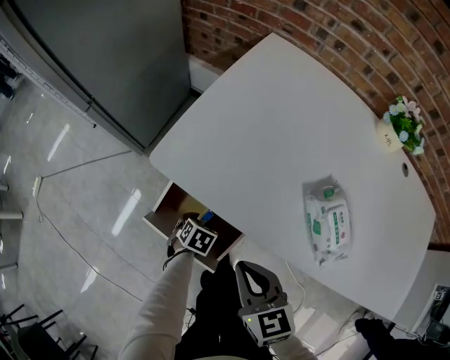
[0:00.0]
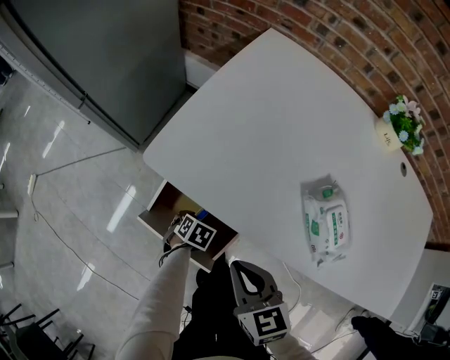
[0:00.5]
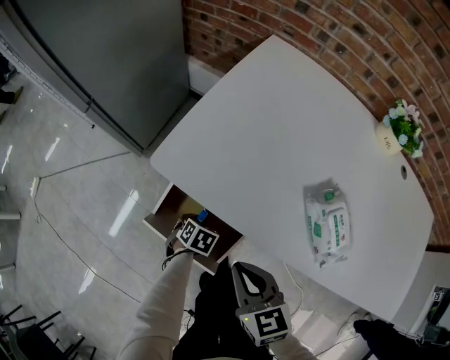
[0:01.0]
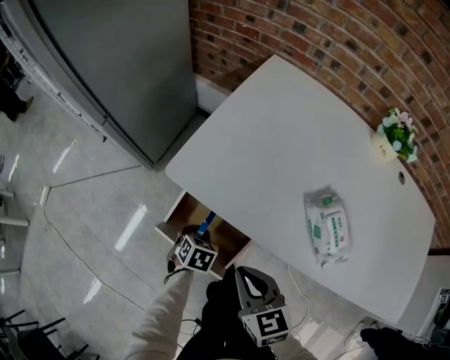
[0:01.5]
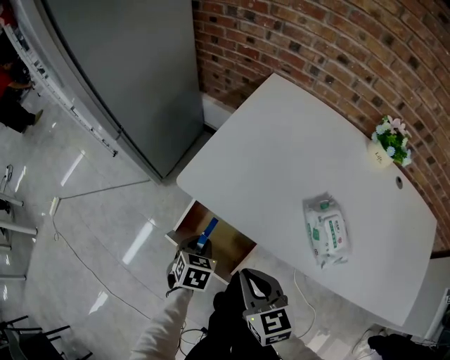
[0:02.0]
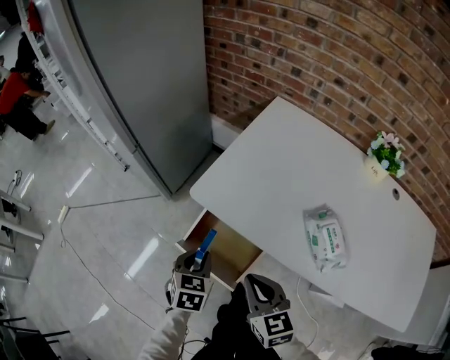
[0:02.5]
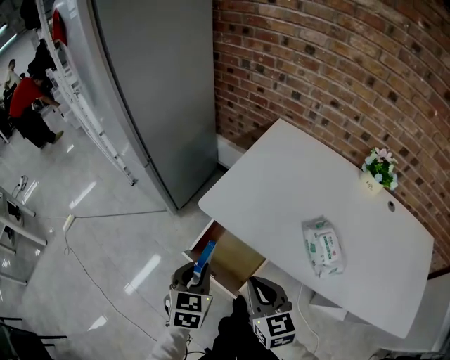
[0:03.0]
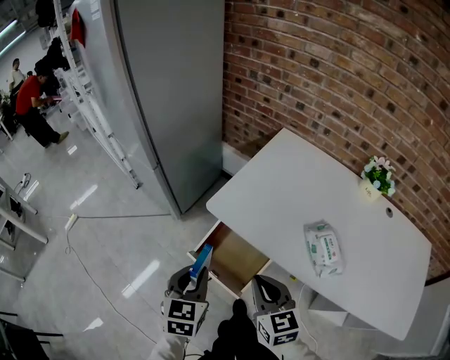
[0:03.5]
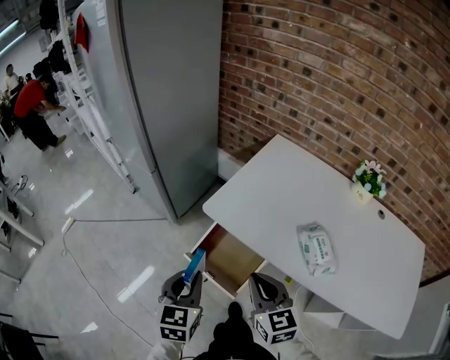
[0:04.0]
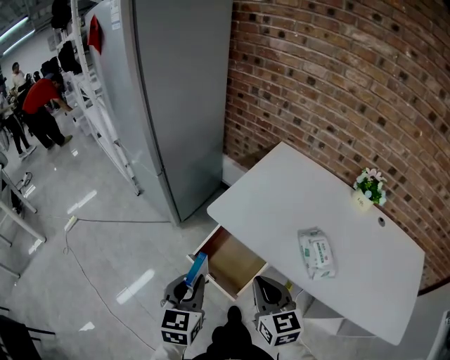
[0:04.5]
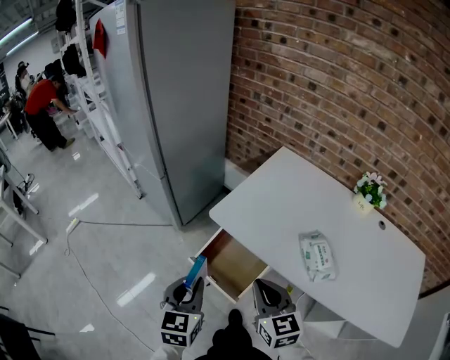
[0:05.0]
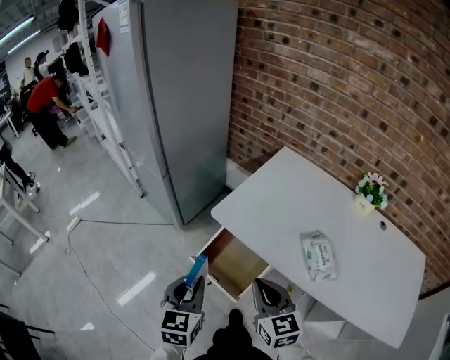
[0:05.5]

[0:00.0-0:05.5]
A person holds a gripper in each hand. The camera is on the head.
0:00.0 to 0:02.0: The left gripper travels upward by about 15 cm, and closes up.
0:02.0 to 0:03.5: The right gripper goes about 10 cm upward. The left gripper goes roughly 20 cm upward, and rotates about 30 degrees.
0:03.5 to 0:05.5: The left gripper moves some 5 cm.

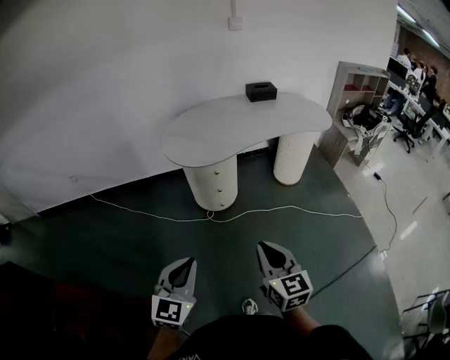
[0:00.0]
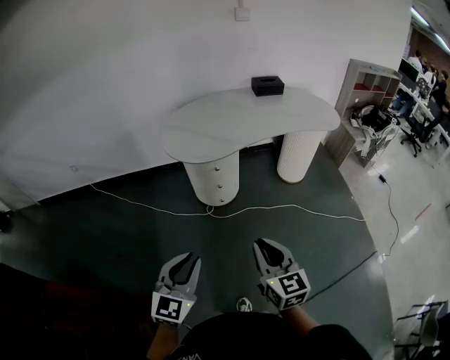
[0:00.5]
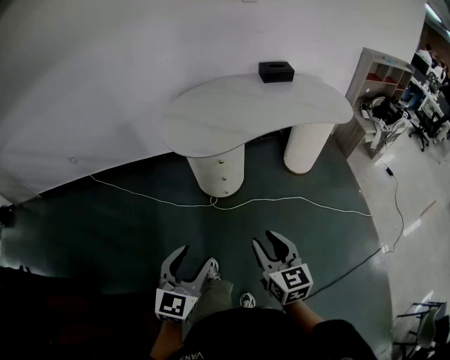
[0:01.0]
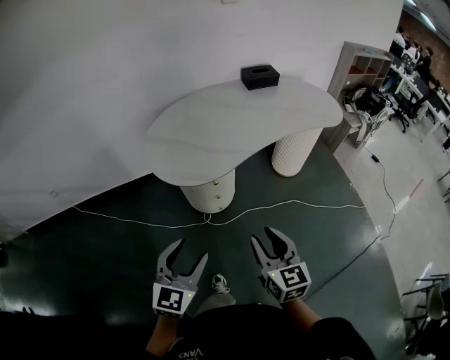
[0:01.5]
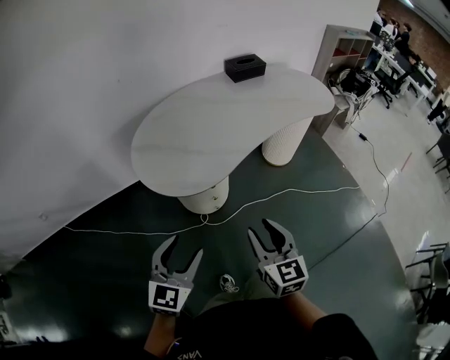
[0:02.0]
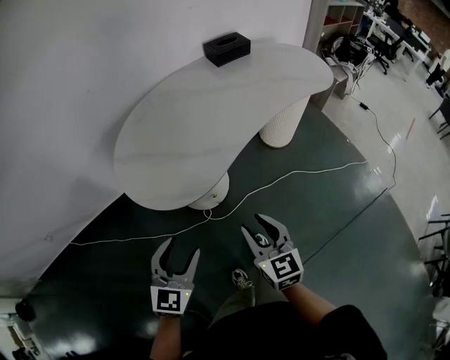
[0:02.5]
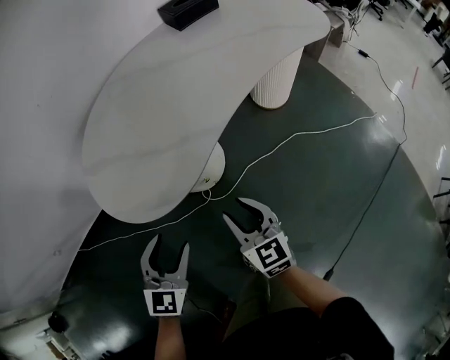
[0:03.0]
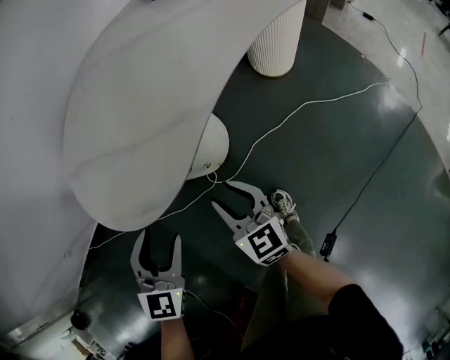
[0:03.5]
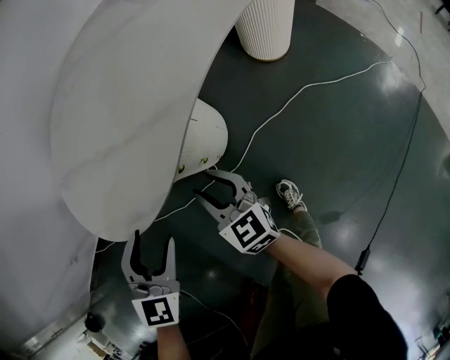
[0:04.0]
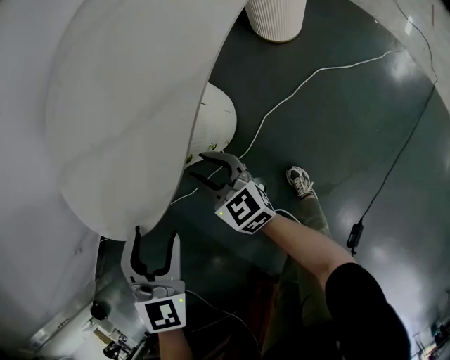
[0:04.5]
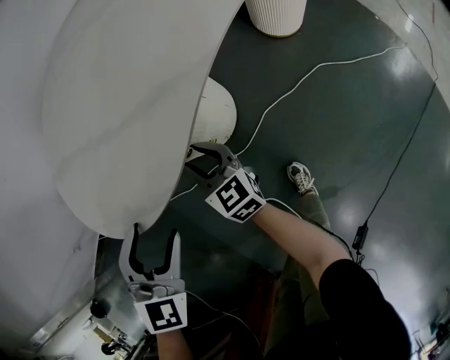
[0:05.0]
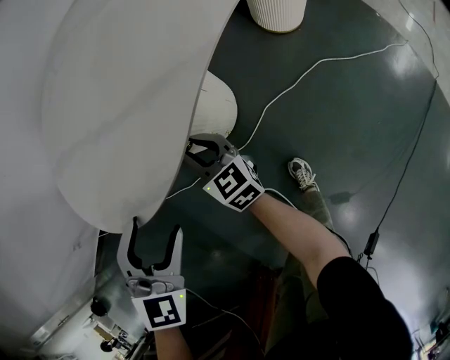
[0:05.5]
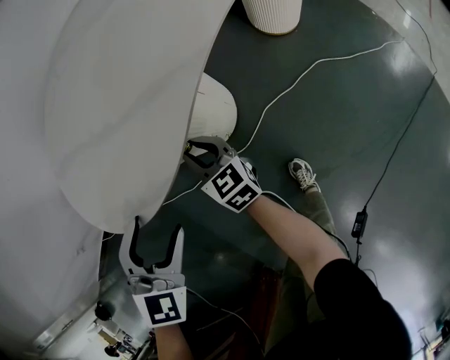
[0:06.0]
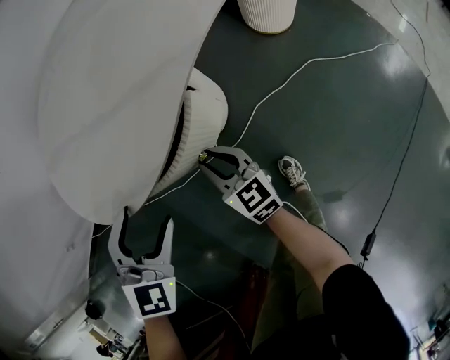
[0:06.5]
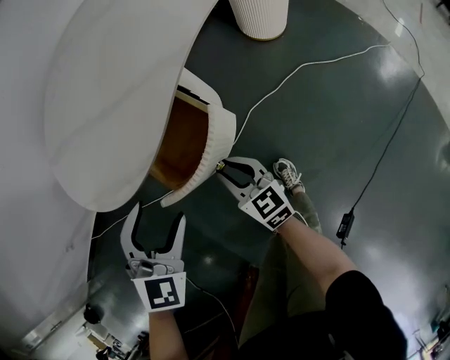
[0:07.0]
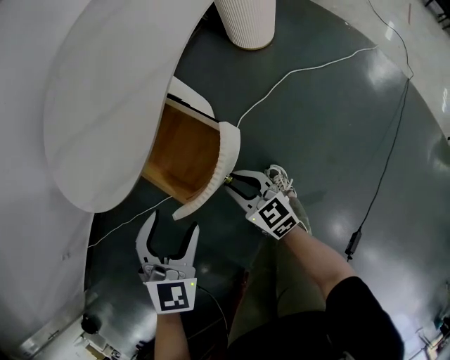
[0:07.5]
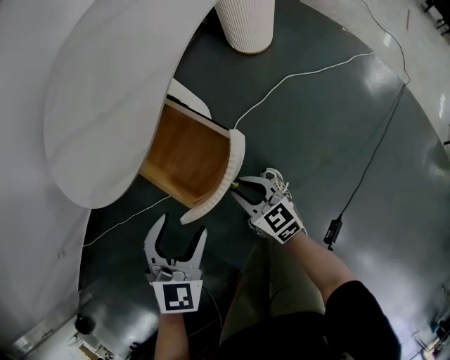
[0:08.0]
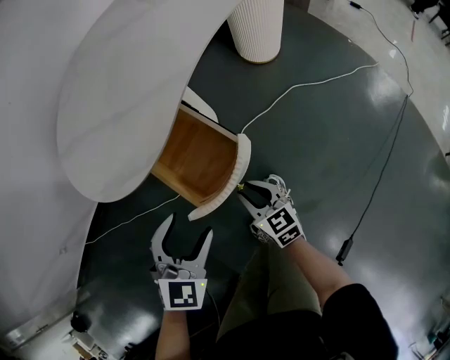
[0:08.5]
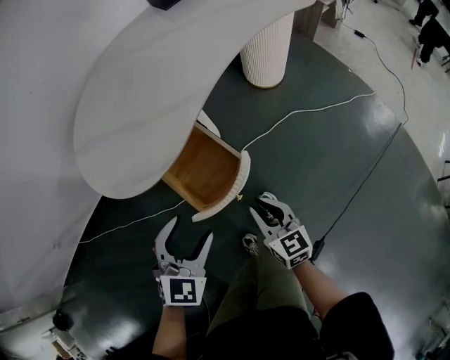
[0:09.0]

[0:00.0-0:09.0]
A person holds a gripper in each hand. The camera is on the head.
0:00.0 to 0:02.0: The two grippers go roughly 30 cm forward. The right gripper opens. Meanwhile the left gripper opens its fingers.
0:02.0 to 0:04.5: Both grippers move downward and forward, some 35 cm. The left gripper swivels approximately 30 degrees.
0:04.5 to 0:07.0: The left gripper shifts by about 5 cm; the right gripper moves backward and downward, roughly 10 cm.
0:07.0 to 0:09.0: The right gripper travels upward, backward and to the right by roughly 20 cm. The left gripper shifts some 10 cm backward, upward and to the right.

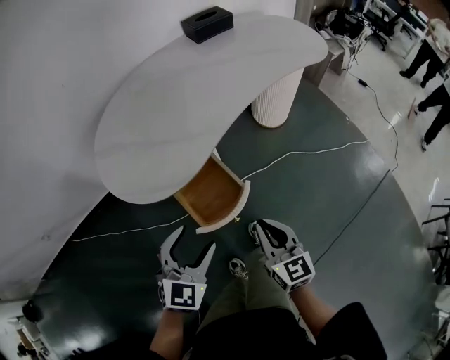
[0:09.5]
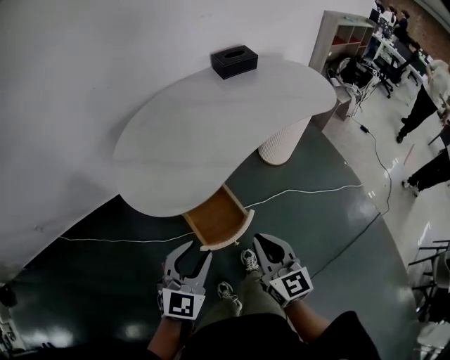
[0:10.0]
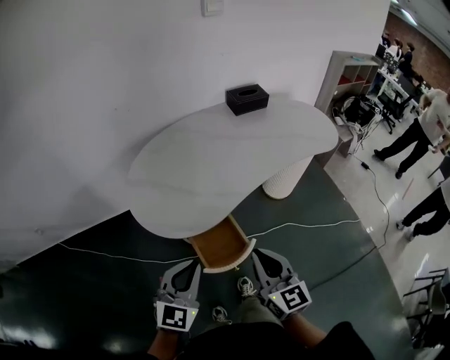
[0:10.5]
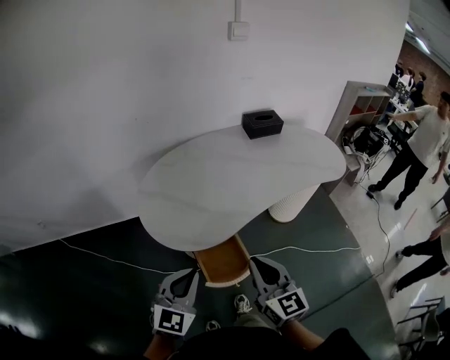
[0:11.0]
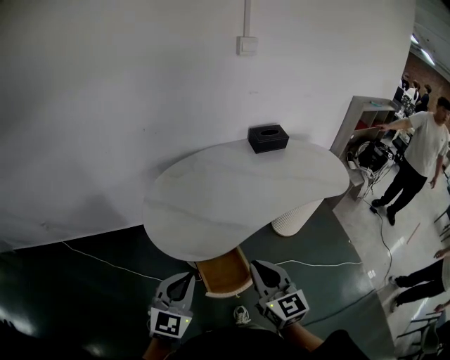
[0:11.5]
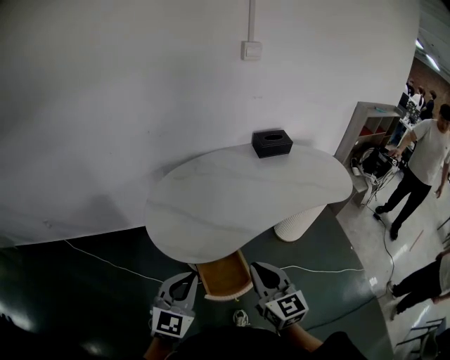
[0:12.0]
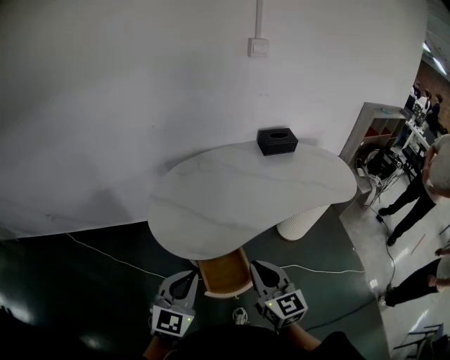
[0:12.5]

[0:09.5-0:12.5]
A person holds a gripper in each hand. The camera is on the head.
0:09.5 to 0:11.0: The left gripper shifts approximately 15 cm upward and to the left, and closes its fingers, while the right gripper shifts roughly 20 cm upward.
0:11.0 to 0:12.5: The grippers stay close to where they were, moving slightly.

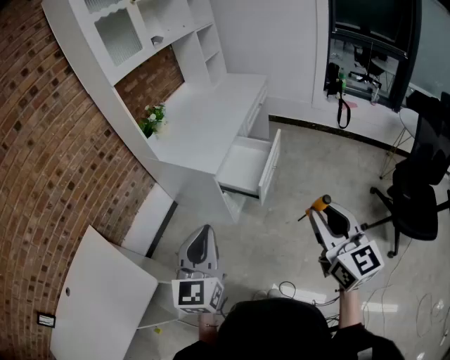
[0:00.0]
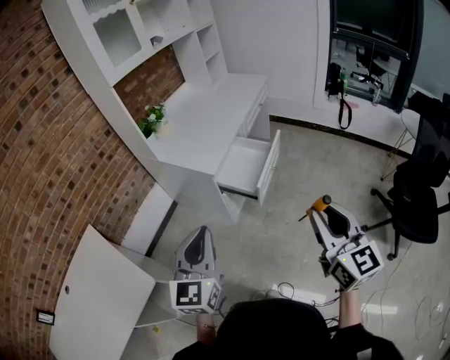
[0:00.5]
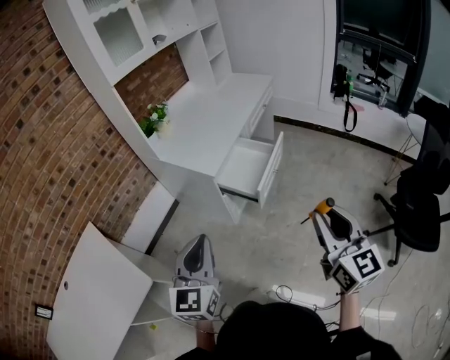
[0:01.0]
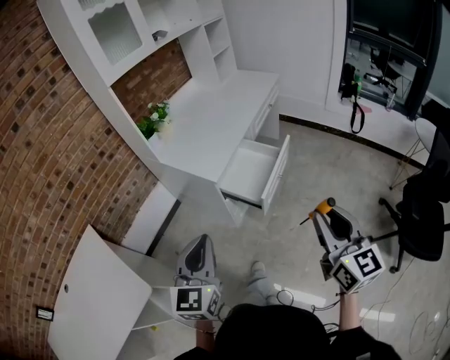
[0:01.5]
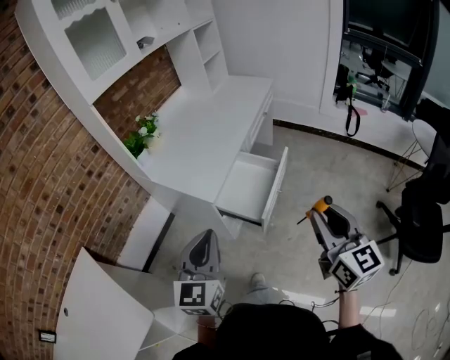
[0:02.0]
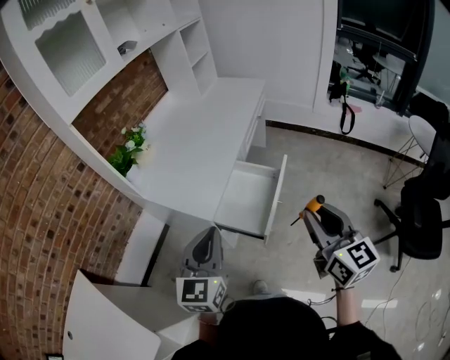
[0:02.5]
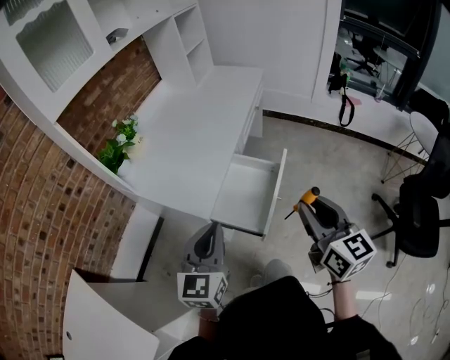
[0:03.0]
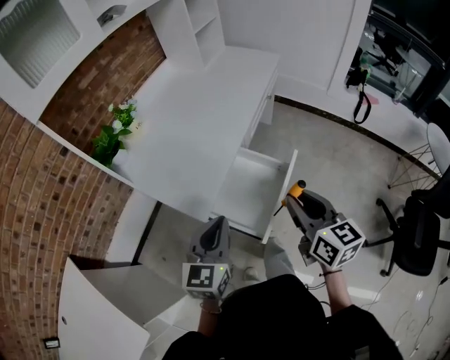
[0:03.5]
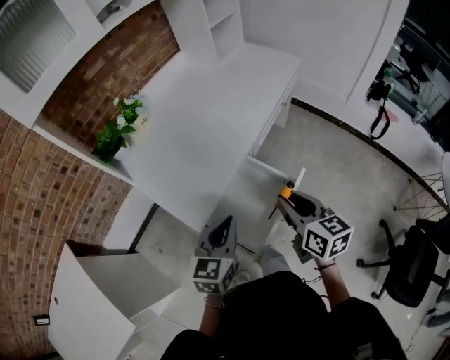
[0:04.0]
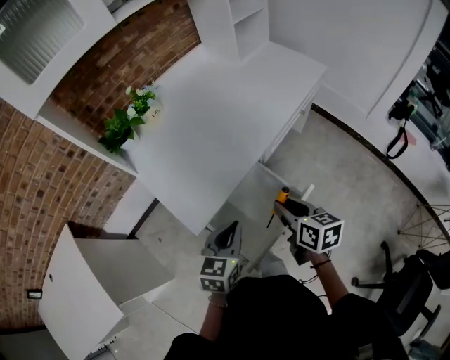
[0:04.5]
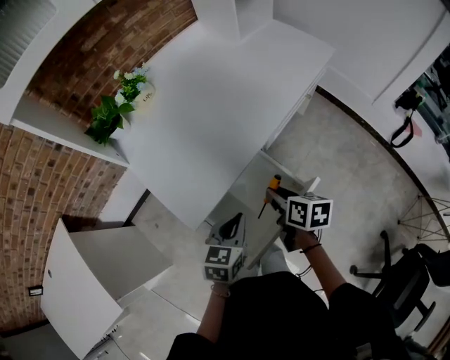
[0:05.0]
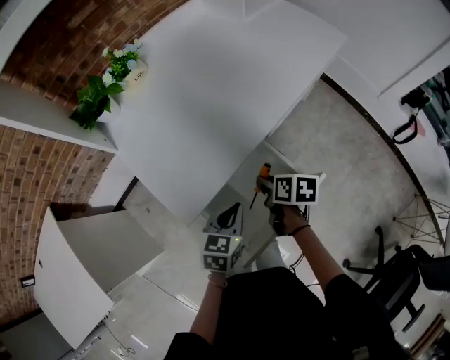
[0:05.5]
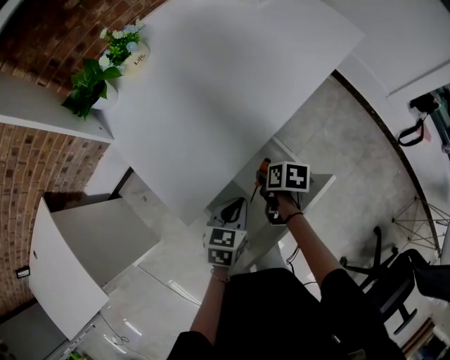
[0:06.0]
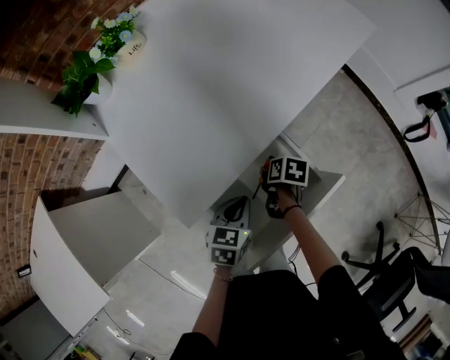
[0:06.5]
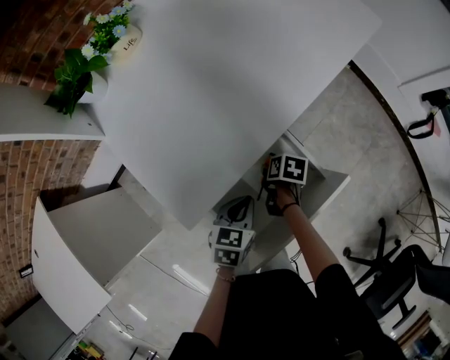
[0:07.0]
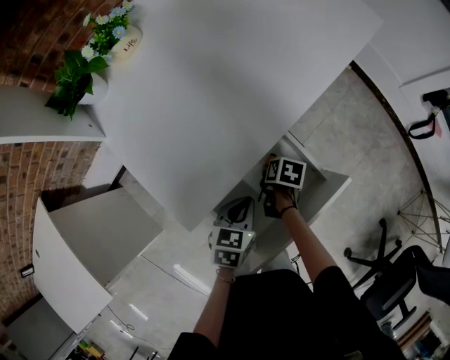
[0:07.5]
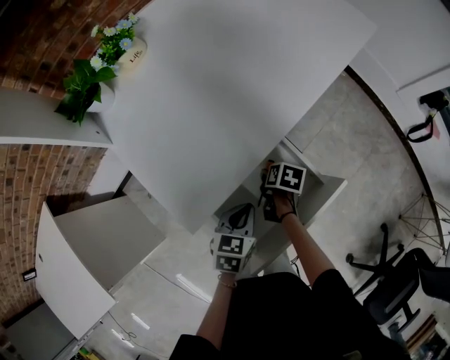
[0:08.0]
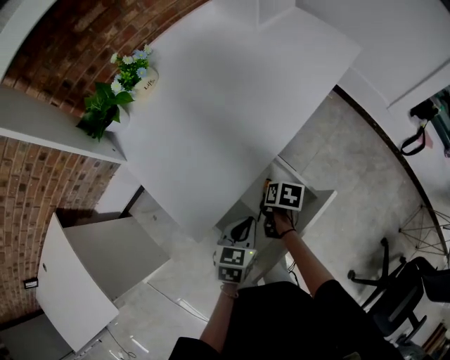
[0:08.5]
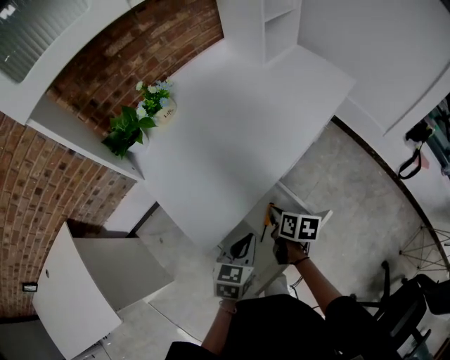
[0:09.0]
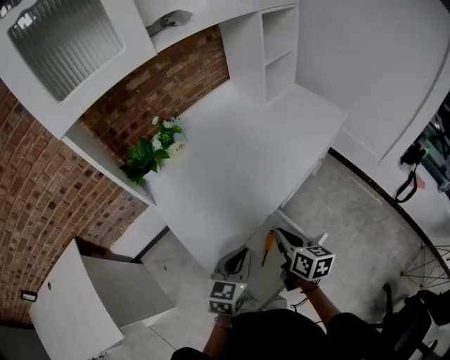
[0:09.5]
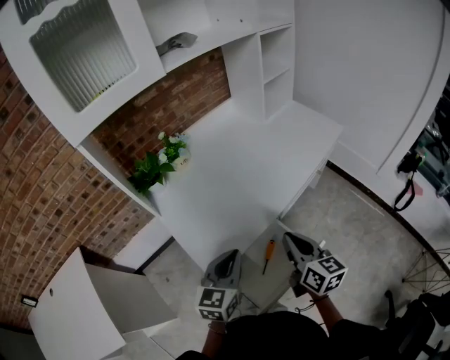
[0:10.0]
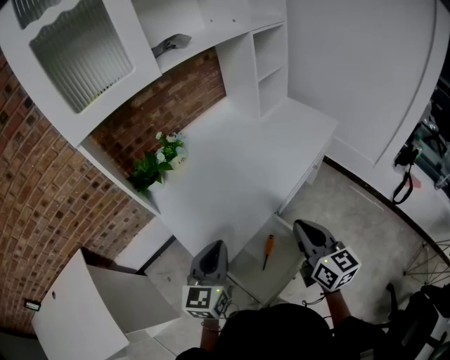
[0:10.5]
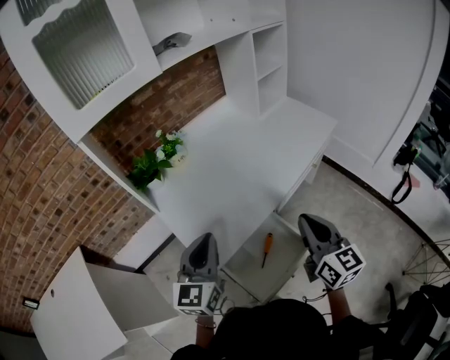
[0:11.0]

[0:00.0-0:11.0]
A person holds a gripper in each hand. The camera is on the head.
0:00.0 to 0:02.0: The two grippers go roughly 15 cm forward.
0:02.0 to 0:03.5: The left gripper travels forward and downward by about 20 cm. The right gripper travels forward by roughly 20 cm.
0:03.5 to 0:05.5: The right gripper shifts approximately 35 cm downward and forward, and tilts its fingers some 40 degrees downward; the left gripper travels downward, forward and to the right by some 25 cm, and swivels some 30 degrees.
0:05.5 to 0:07.5: The left gripper travels downward by about 10 cm, while the right gripper shifts roughly 15 cm downward, and rotates about 20 degrees.
0:07.5 to 0:09.0: The right gripper travels upward by some 20 cm, turns by some 30 degrees, and closes its fingers. The left gripper shifts some 10 cm upward.
0:09.0 to 0:11.0: The right gripper moves upward, about 30 cm, and points its fingers about 40 degrees further upward, while the left gripper goes some 25 cm upward and to the left, and angles its fingers upward, by approximately 30 degrees.
